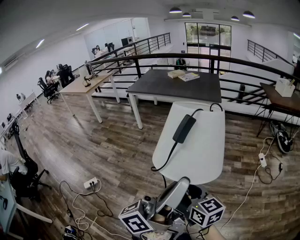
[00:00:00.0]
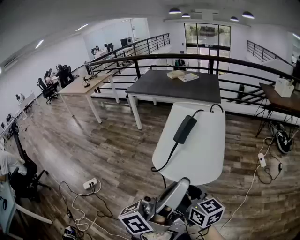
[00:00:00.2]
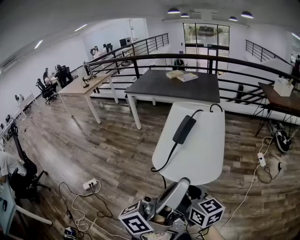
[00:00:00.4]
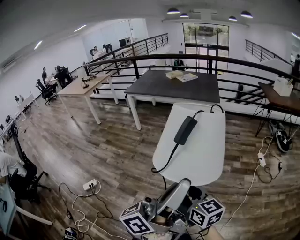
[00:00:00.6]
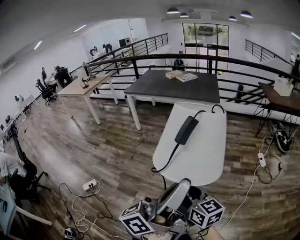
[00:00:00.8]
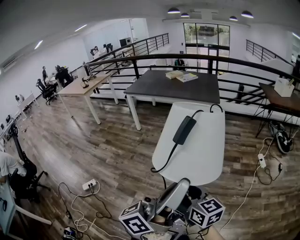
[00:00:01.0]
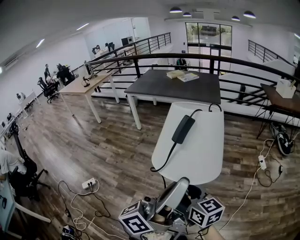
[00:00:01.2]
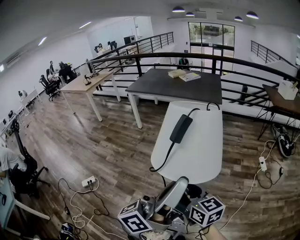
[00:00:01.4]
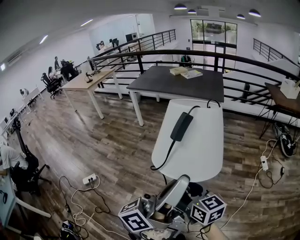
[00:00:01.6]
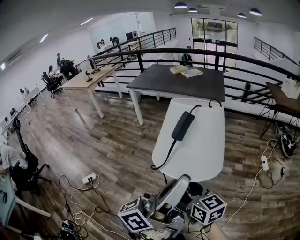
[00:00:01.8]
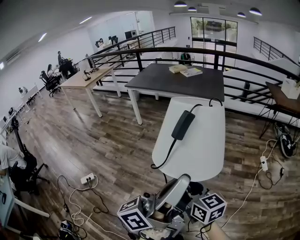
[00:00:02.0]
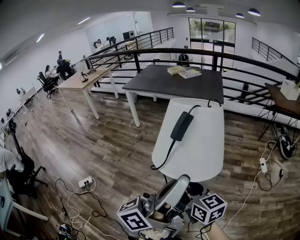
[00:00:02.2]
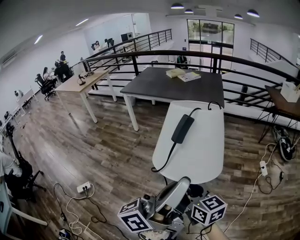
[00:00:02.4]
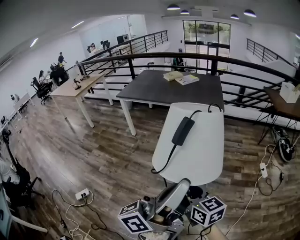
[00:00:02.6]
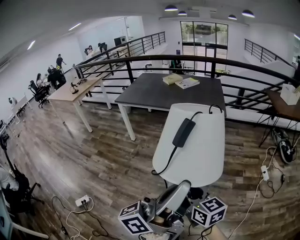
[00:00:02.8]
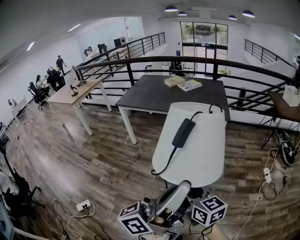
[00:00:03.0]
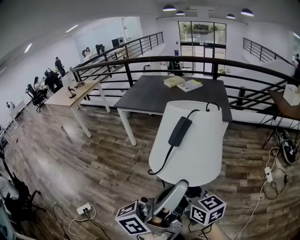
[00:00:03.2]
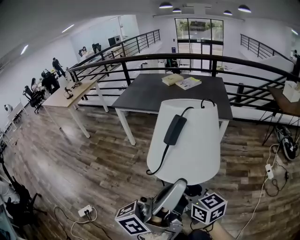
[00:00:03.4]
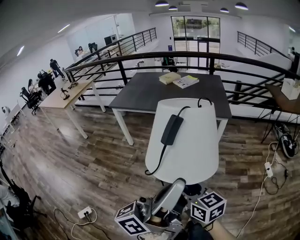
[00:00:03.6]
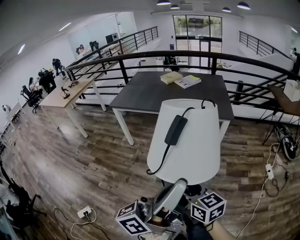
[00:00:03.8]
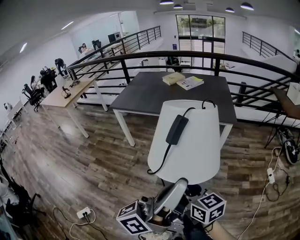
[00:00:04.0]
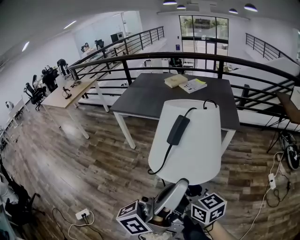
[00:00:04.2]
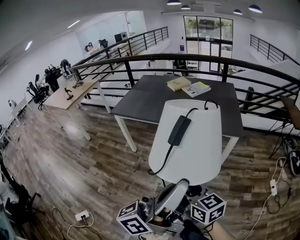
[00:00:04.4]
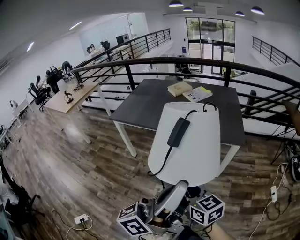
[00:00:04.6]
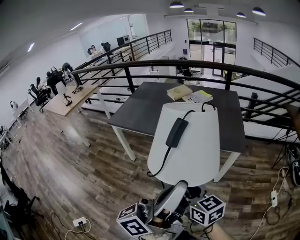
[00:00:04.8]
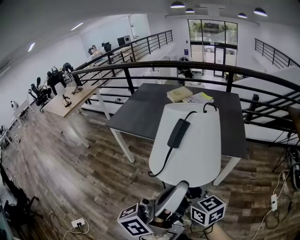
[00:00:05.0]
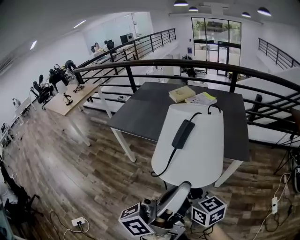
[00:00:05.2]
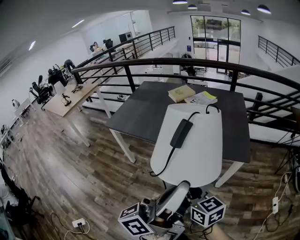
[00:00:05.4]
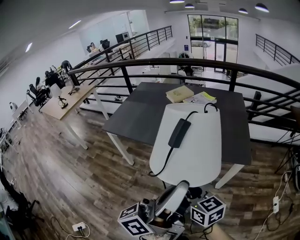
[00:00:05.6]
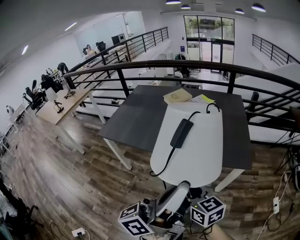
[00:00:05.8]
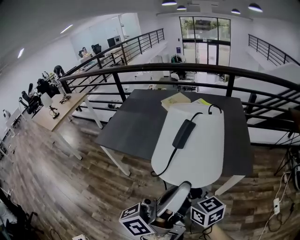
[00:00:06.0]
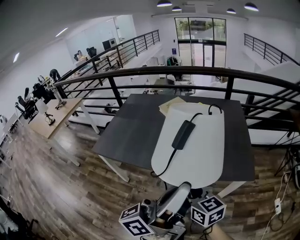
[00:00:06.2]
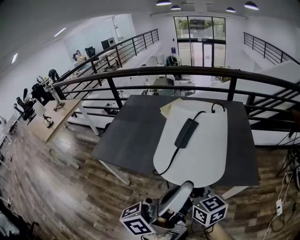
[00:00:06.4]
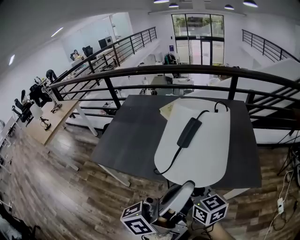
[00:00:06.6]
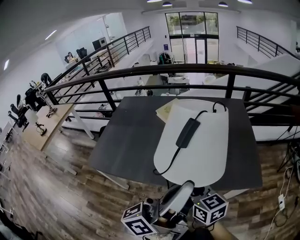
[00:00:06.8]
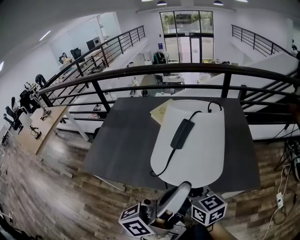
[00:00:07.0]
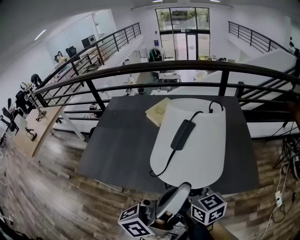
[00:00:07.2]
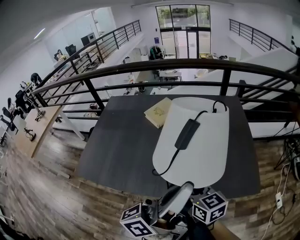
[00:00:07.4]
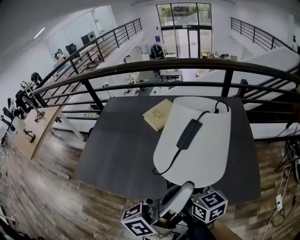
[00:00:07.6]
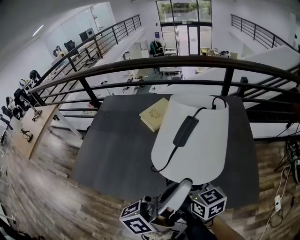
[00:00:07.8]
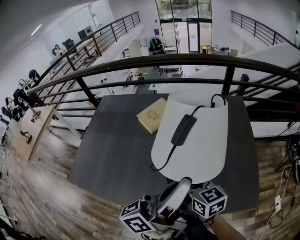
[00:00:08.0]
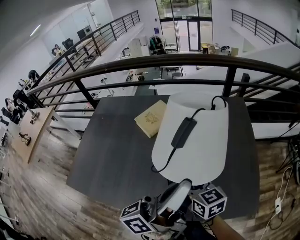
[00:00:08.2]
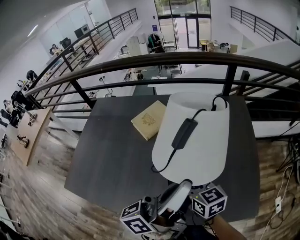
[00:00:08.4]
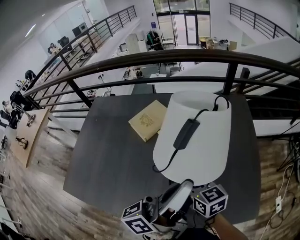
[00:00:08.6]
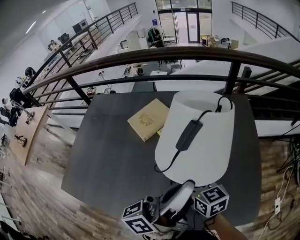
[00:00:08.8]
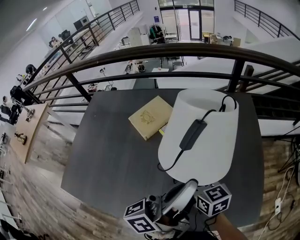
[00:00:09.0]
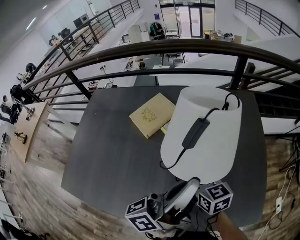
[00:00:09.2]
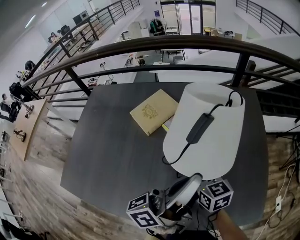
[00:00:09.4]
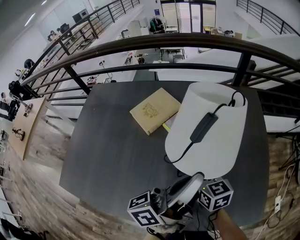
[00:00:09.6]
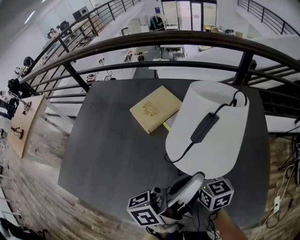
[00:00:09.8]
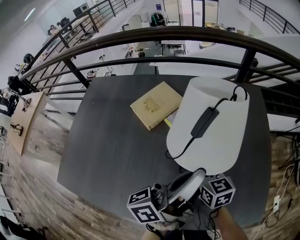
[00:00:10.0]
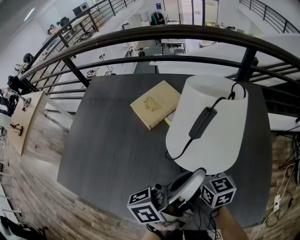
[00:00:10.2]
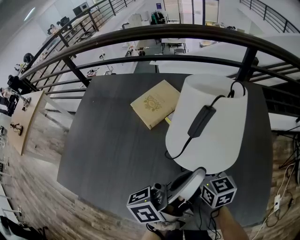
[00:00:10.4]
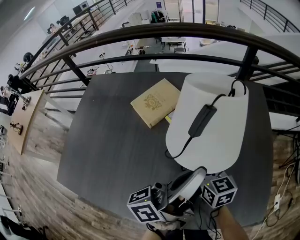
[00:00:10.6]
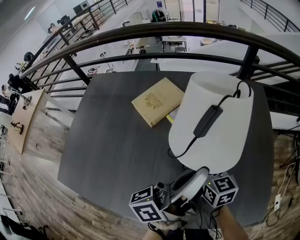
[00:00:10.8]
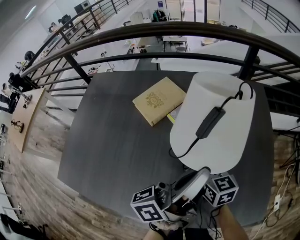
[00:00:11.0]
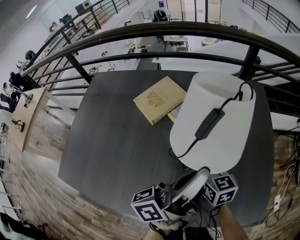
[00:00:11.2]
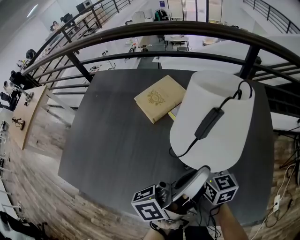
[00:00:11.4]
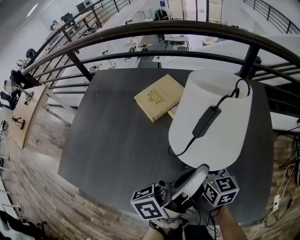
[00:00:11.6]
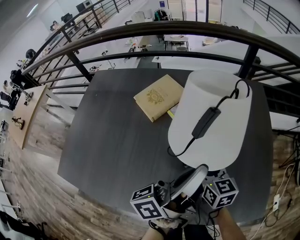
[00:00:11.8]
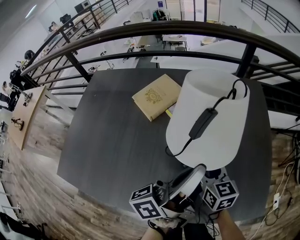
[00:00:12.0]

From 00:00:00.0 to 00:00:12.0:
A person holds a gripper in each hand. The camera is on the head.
From 00:00:00.0 to 00:00:01.6: The left gripper changes place by approximately 5 cm. Meanwhile the right gripper moves some 5 cm.
From 00:00:01.6 to 00:00:03.0: The two grippers go some 25 cm forward.
From 00:00:03.0 to 00:00:04.4: The two grippers go about 25 cm forward.
From 00:00:04.4 to 00:00:06.0: Both grippers travel together forward, some 30 cm.
From 00:00:06.0 to 00:00:07.6: Both grippers move forward, some 30 cm.
From 00:00:07.6 to 00:00:09.0: The right gripper shifts about 20 cm forward and downward. Meanwhile the left gripper travels forward by about 20 cm.
From 00:00:09.0 to 00:00:10.4: The left gripper shifts by approximately 5 cm, while the right gripper moves about 5 cm.
From 00:00:10.4 to 00:00:12.0: There are only small adjustments of the grippers.

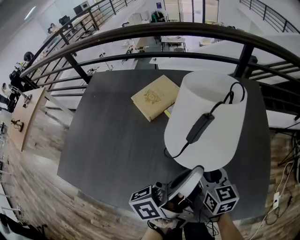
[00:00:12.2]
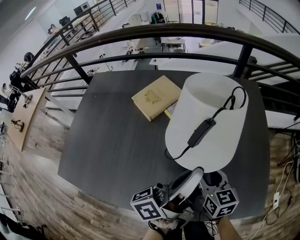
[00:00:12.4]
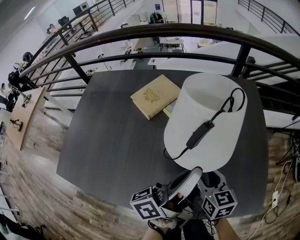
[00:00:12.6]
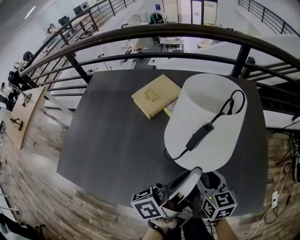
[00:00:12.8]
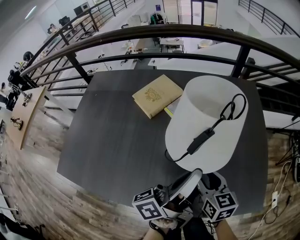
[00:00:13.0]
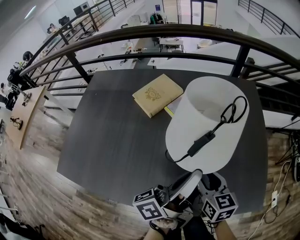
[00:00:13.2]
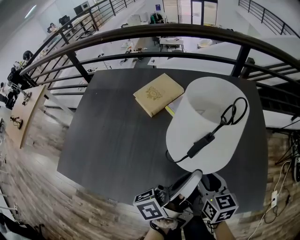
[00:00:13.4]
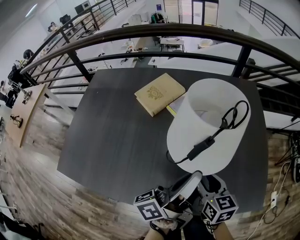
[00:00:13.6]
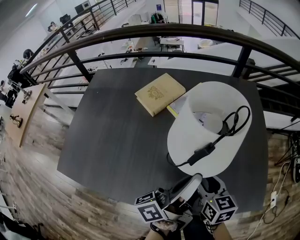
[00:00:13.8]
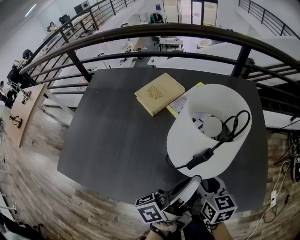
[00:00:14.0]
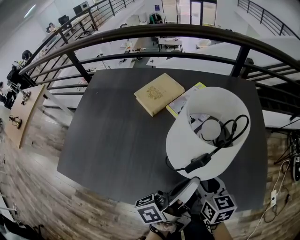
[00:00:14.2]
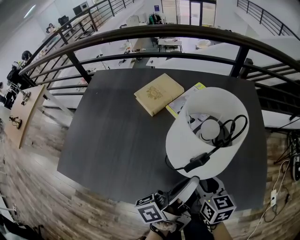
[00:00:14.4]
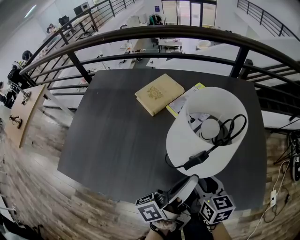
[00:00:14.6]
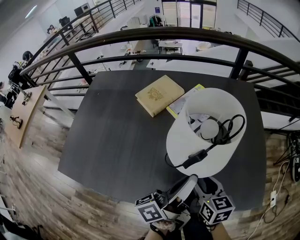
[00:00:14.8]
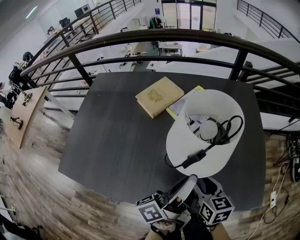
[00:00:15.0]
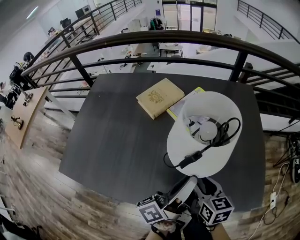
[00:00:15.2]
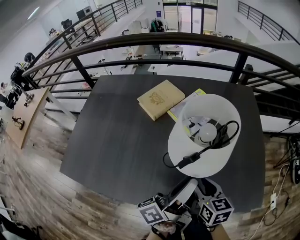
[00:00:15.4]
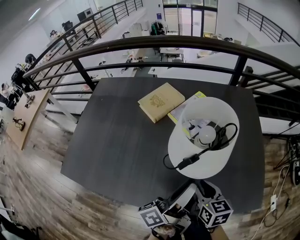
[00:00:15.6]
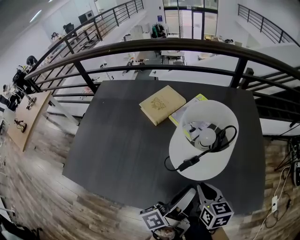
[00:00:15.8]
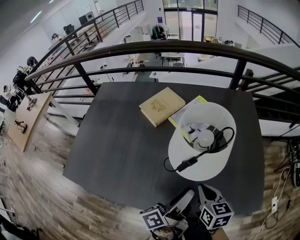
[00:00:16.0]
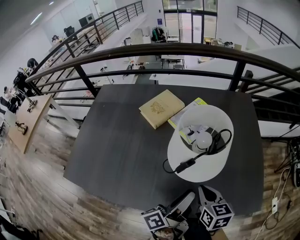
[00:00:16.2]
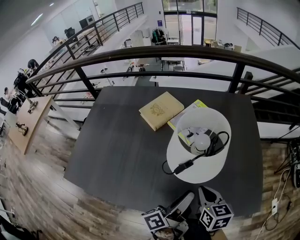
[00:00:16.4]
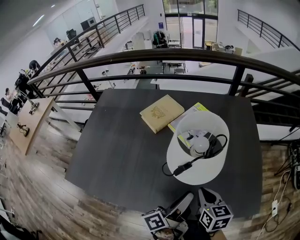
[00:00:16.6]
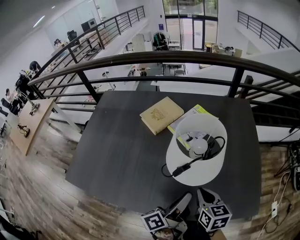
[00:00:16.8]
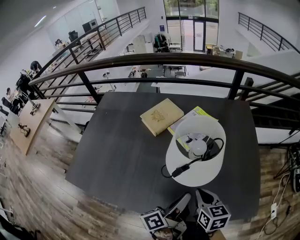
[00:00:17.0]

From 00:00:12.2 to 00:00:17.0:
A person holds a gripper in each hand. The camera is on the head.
From 00:00:12.2 to 00:00:13.8: Both grippers move backward, about 5 cm.
From 00:00:13.8 to 00:00:15.4: The left gripper opens up.
From 00:00:15.4 to 00:00:17.0: The left gripper closes up; the right gripper closes its fingers.

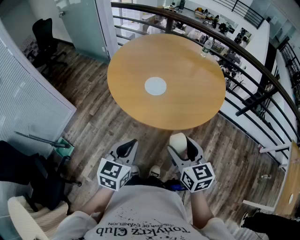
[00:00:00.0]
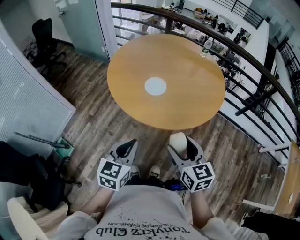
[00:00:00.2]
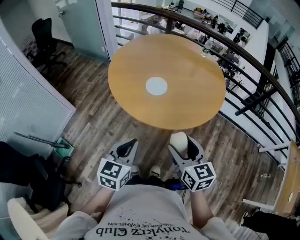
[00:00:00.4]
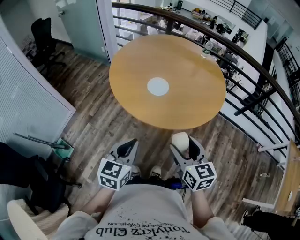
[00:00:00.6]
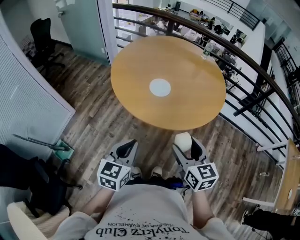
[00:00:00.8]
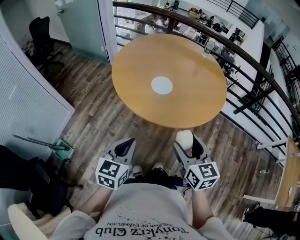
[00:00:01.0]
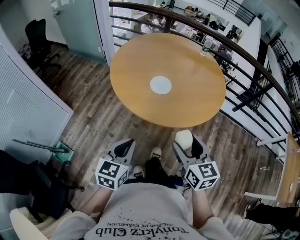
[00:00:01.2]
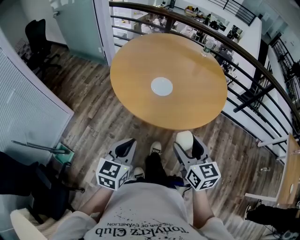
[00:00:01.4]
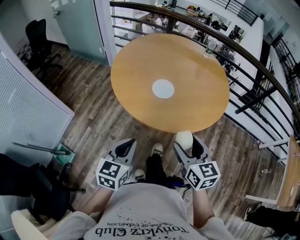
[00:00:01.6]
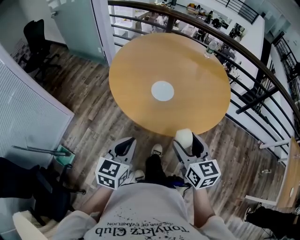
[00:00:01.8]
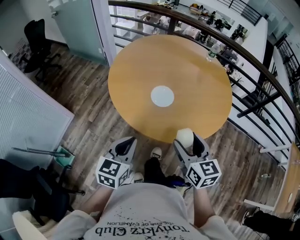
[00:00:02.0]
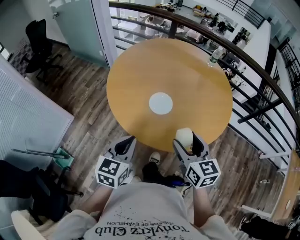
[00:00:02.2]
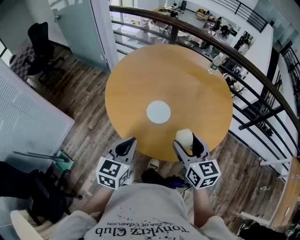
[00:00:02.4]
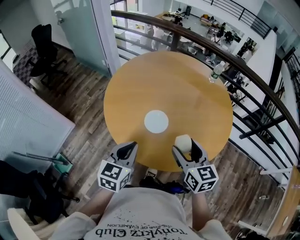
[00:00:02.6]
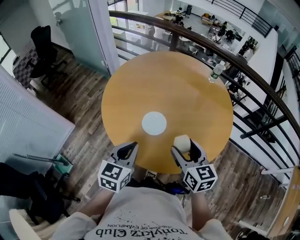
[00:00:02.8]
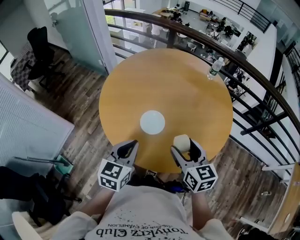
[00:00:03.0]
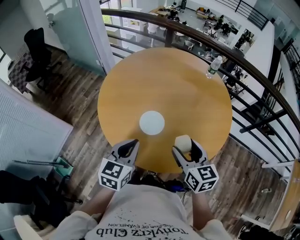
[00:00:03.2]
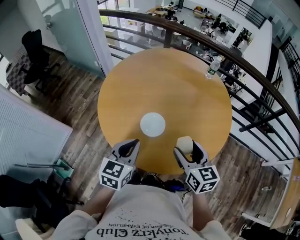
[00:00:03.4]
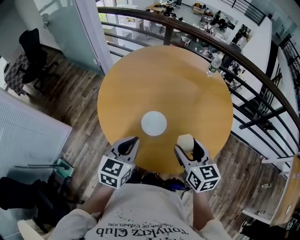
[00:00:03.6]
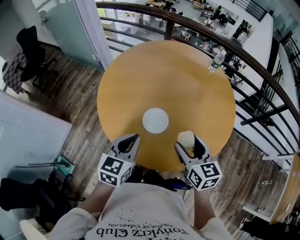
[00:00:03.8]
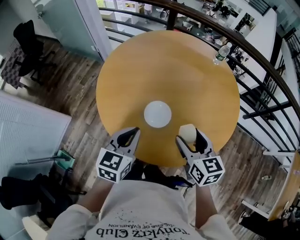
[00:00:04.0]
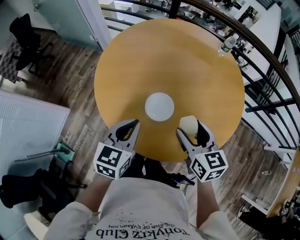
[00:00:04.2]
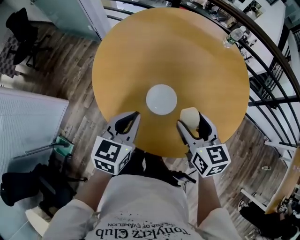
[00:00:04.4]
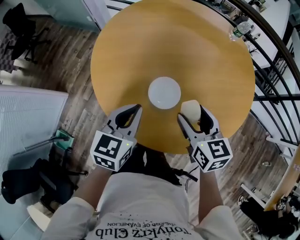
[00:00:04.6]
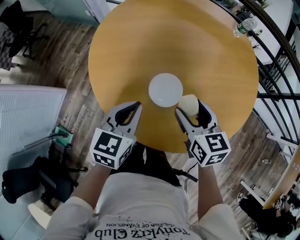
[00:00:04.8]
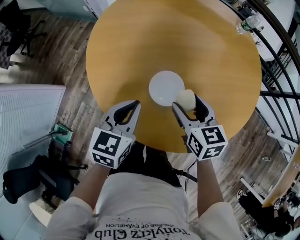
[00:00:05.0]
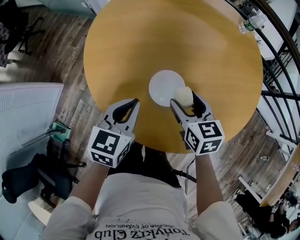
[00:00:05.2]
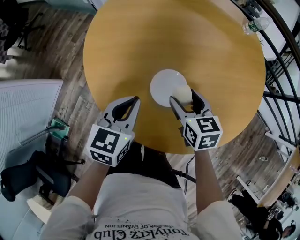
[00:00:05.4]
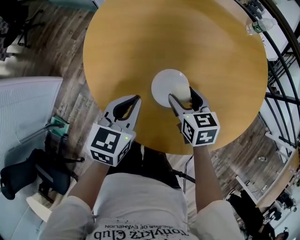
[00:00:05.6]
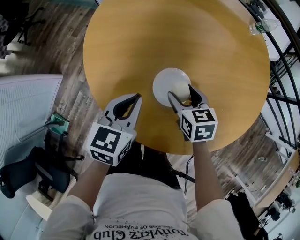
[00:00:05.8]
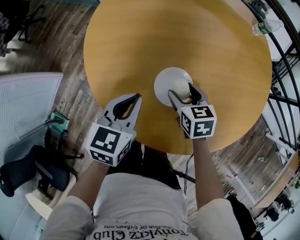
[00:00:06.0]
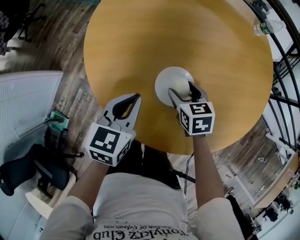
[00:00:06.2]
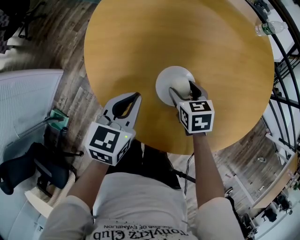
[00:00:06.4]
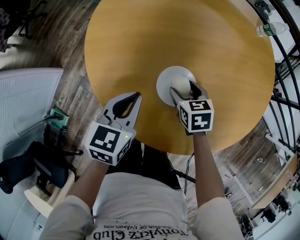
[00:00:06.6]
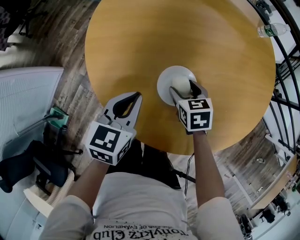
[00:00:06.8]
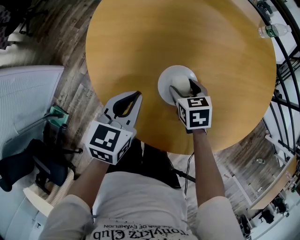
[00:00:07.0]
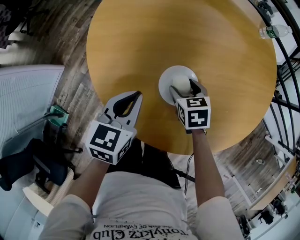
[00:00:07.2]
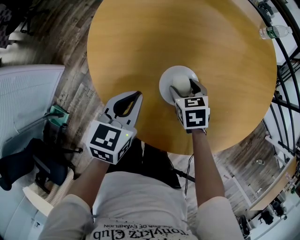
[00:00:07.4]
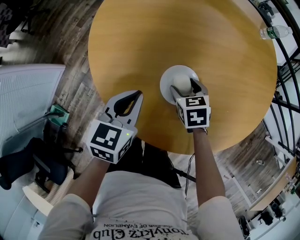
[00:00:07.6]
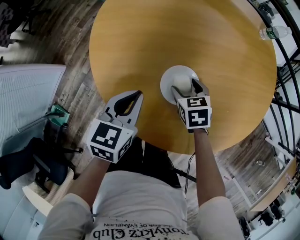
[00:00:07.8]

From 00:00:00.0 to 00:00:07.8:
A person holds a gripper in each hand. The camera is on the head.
From 00:00:00.0 to 00:00:01.6: The grippers both shift to the left by roughly 5 cm.
From 00:00:01.6 to 00:00:03.2: Both grippers travel together forward, about 25 cm.
From 00:00:03.2 to 00:00:04.6: Both grippers travel together forward and downward, about 15 cm.
From 00:00:04.6 to 00:00:06.2: The left gripper moves downward and forward, about 10 cm. The right gripper moves downward and forward, about 20 cm, and swivels some 20 degrees.
From 00:00:06.2 to 00:00:07.8: The grippers stay close to where they were, moving slightly.
